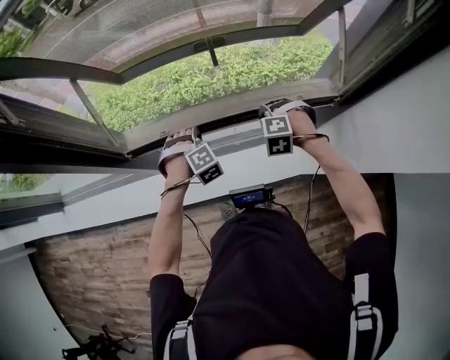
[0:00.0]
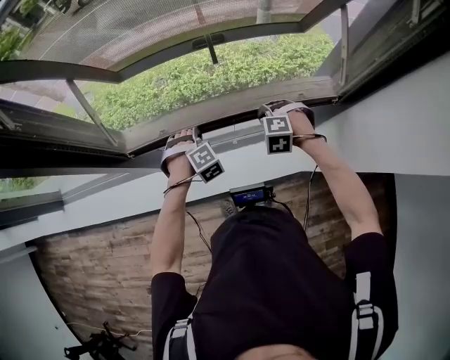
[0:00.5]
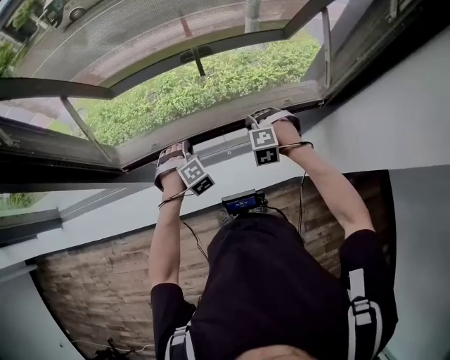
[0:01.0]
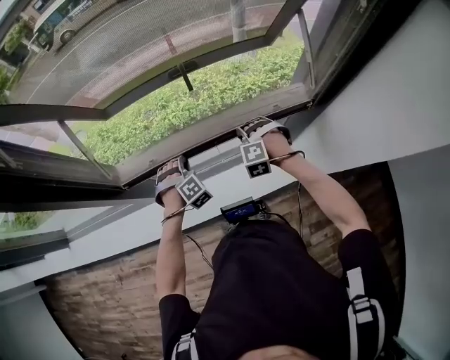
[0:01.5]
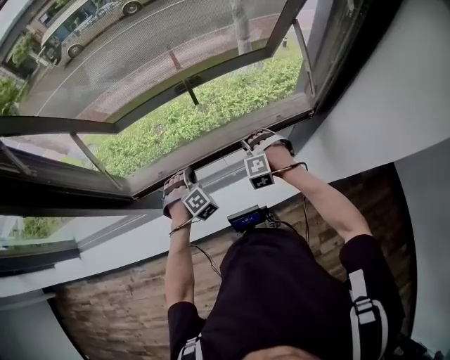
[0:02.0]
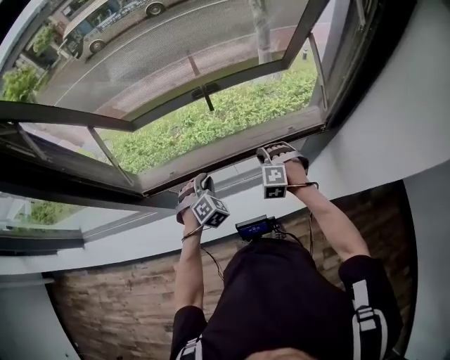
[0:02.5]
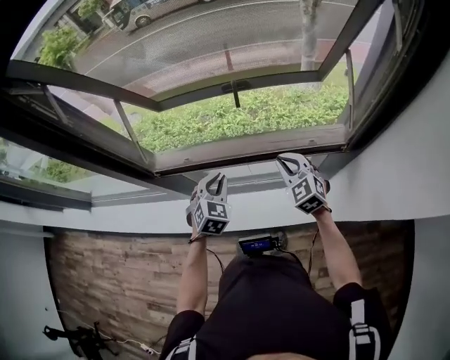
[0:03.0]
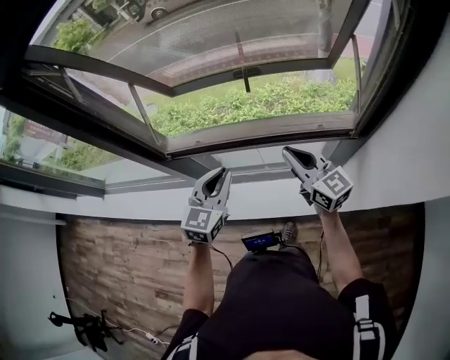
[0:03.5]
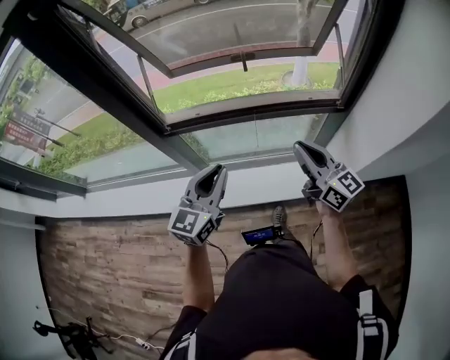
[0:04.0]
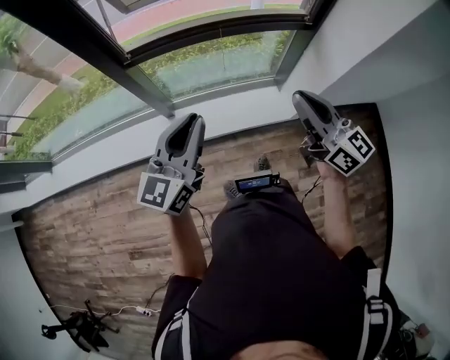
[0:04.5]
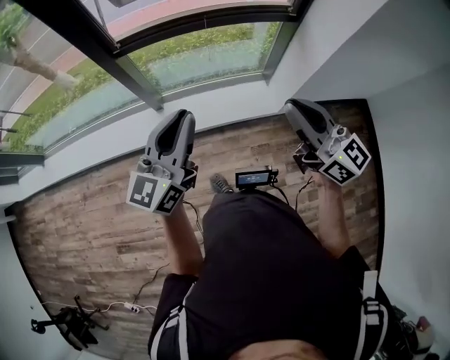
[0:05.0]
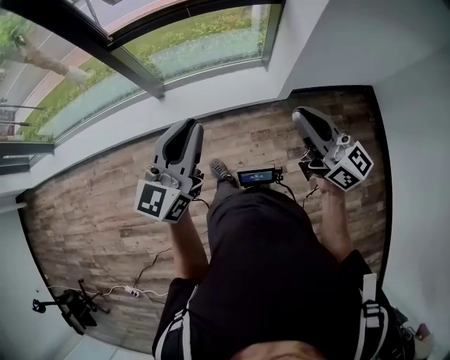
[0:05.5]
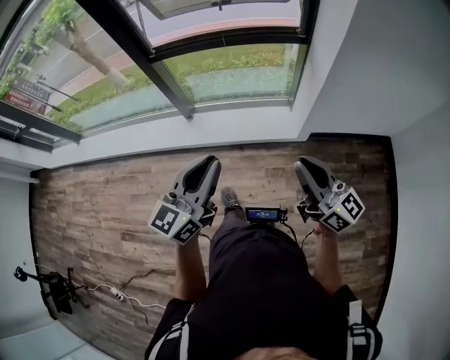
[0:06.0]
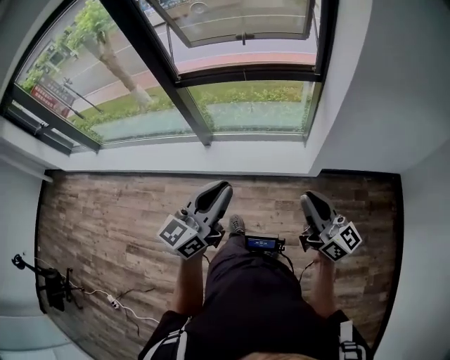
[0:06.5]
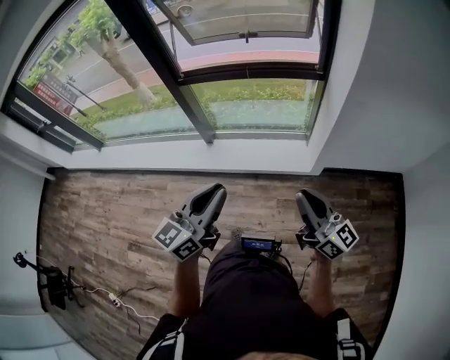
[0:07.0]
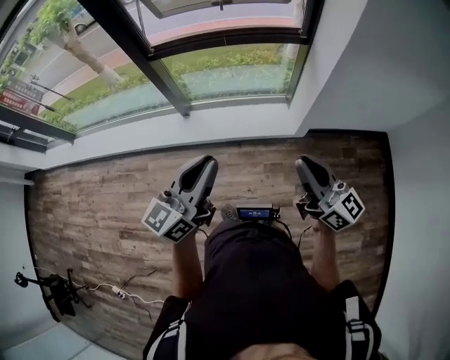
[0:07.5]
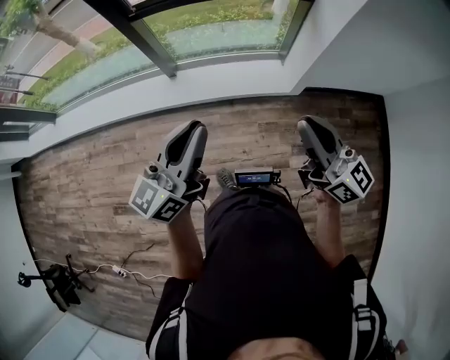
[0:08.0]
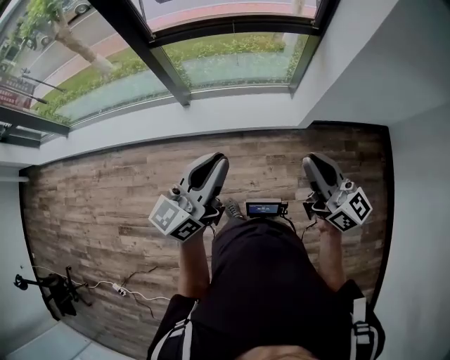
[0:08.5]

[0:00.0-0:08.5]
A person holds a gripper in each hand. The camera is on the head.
0:00.0 to 0:02.0: The grippers stay close to where they were, moving slightly.
0:02.0 to 0:04.0: The left gripper is displaced backward and upward by some 35 cm, and points its fingers roughly 40 degrees further upward; the right gripper shifts about 35 cm upward and backward, and angles its fingers upward, by approximately 60 degrees.
0:04.0 to 0:06.5: Both grippers move backward, roughly 40 cm.
0:06.5 to 0:08.5: The two grippers go about 10 cm to the left.

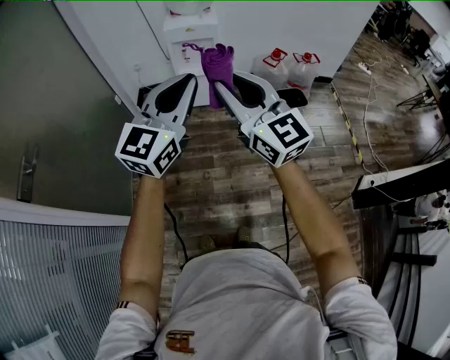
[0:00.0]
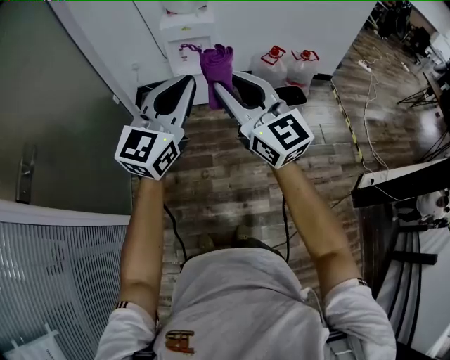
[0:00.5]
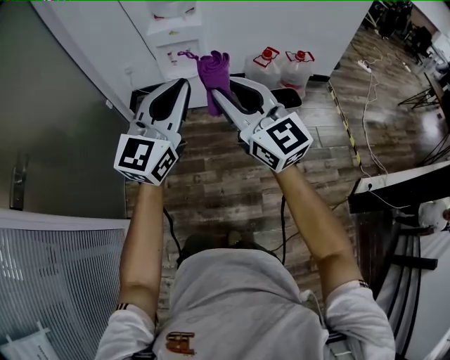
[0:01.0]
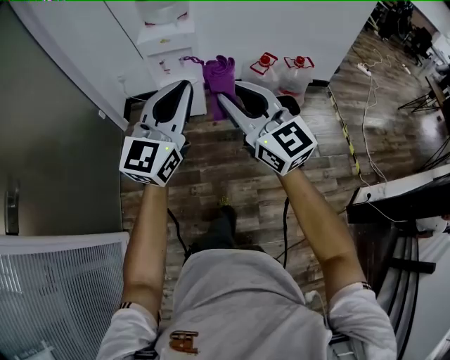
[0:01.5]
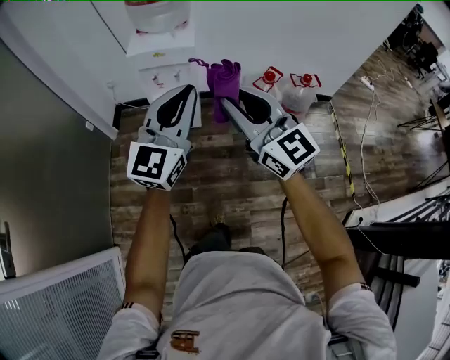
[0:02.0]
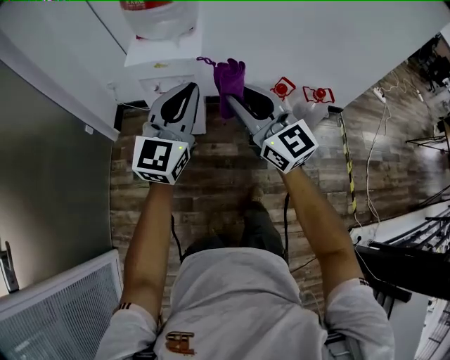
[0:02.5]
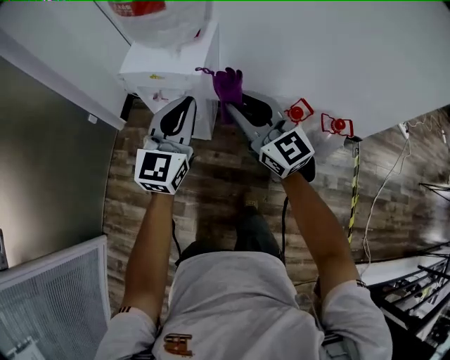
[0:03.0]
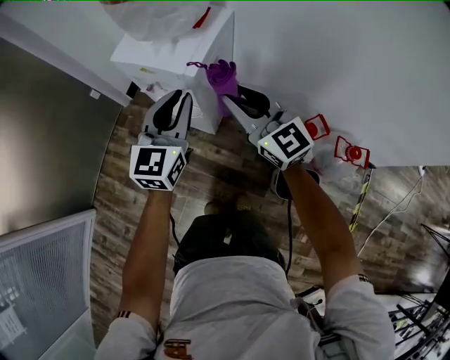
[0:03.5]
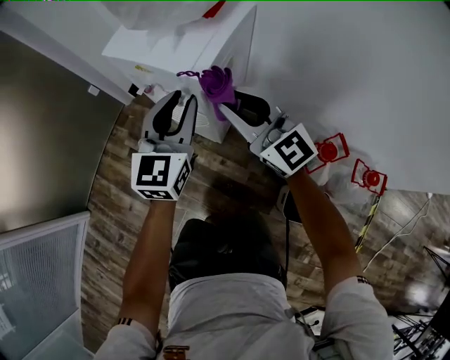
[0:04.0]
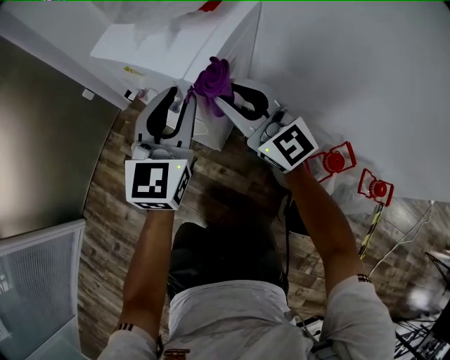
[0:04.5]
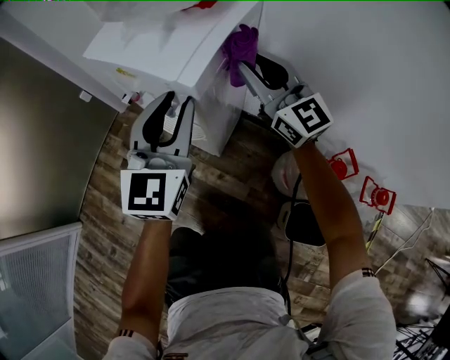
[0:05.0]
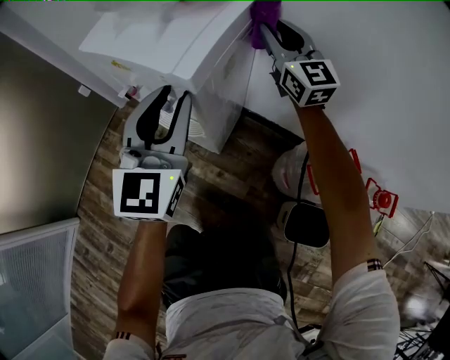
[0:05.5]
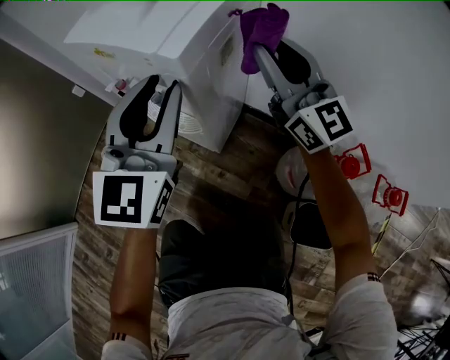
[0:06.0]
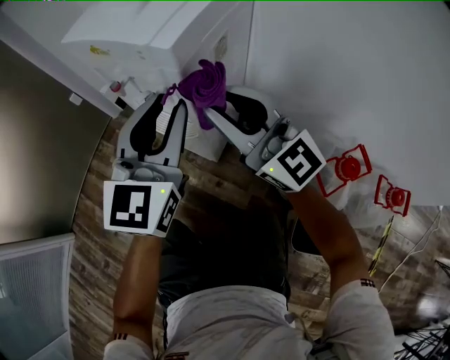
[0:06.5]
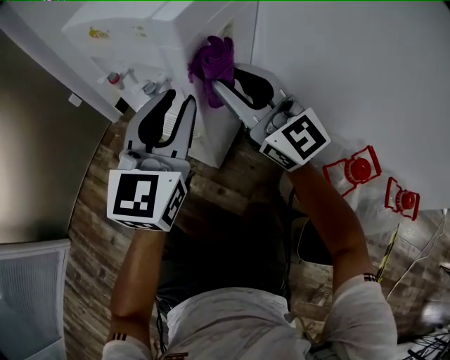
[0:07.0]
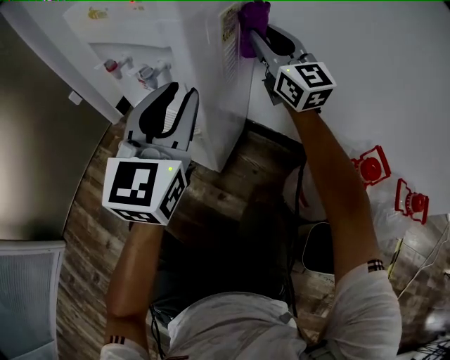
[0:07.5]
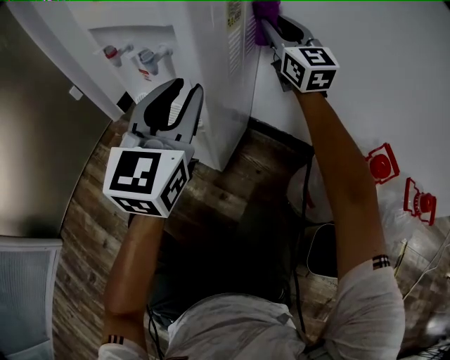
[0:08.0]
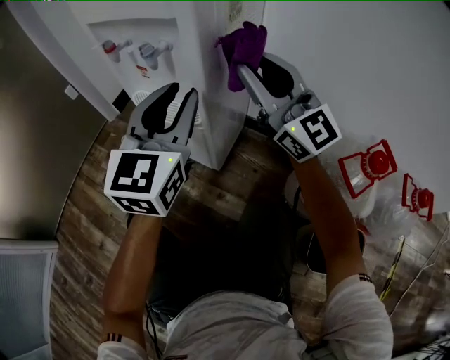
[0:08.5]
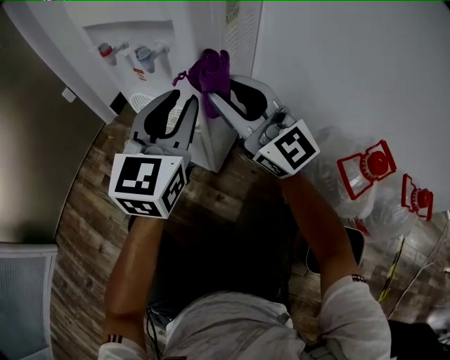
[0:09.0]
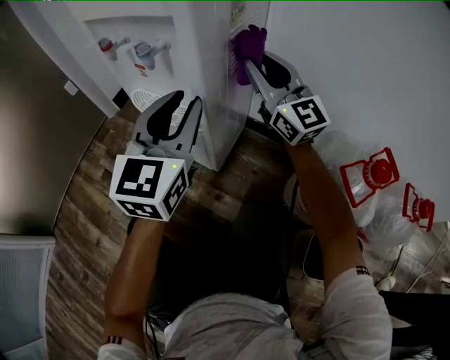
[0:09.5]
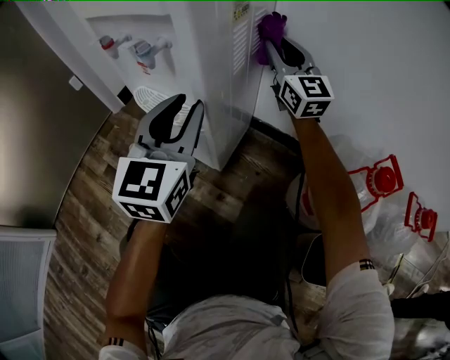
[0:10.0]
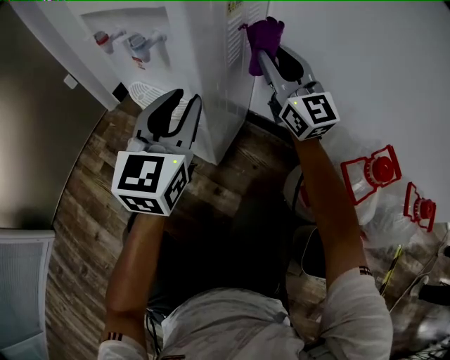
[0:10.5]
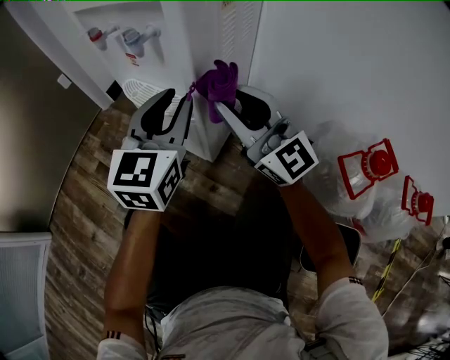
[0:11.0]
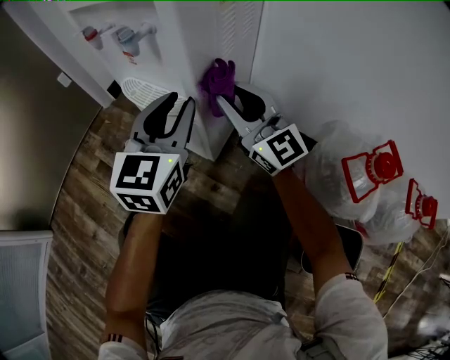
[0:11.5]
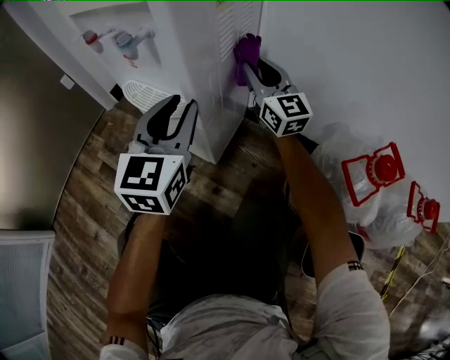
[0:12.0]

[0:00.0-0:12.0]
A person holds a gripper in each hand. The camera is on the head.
0:00.0 to 0:02.0: Both grippers move forward and to the right, about 30 cm.
0:02.0 to 0:04.0: The left gripper shifts by roughly 50 cm, changes its angle by some 40 degrees, and opens its fingers; the right gripper shifts by approximately 50 cm, and rotates some 30 degrees.
0:04.0 to 0:06.0: The right gripper is displaced to the right, forward and downward by about 15 cm.
0:06.0 to 0:08.0: The left gripper shifts approximately 15 cm downward, while the right gripper is displaced downward and forward by about 15 cm.
0:08.0 to 0:10.0: The two grippers go about 5 cm downward. The right gripper goes backward and returns, some 20 cm each way.
0:10.0 to 0:12.0: The right gripper shifts roughly 10 cm downward, and moves approximately 20 cm backward and comes back.

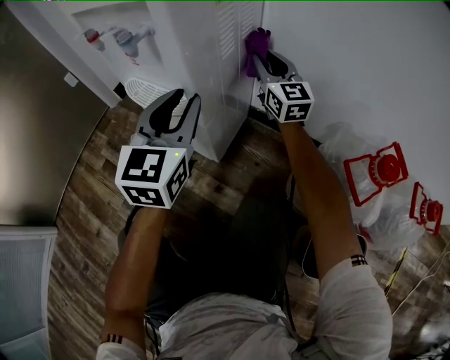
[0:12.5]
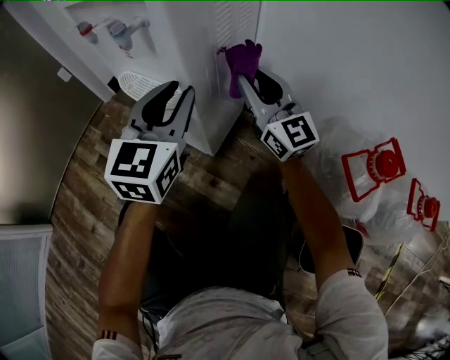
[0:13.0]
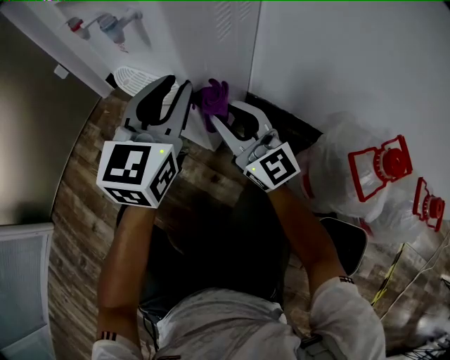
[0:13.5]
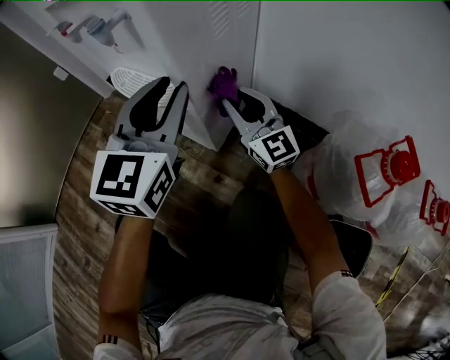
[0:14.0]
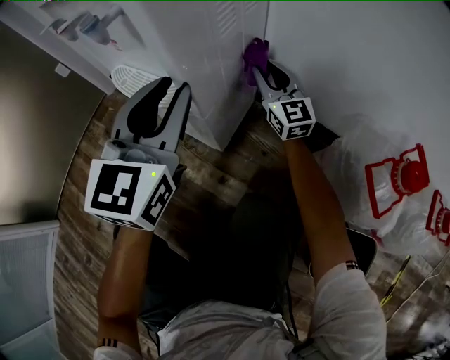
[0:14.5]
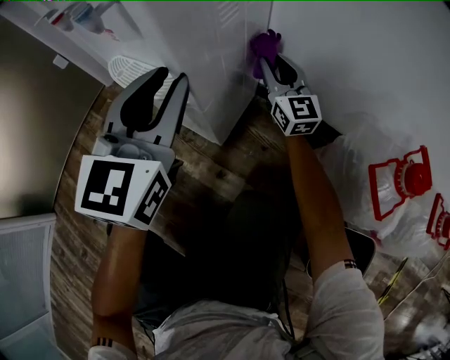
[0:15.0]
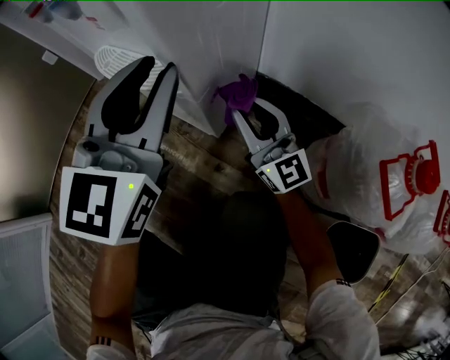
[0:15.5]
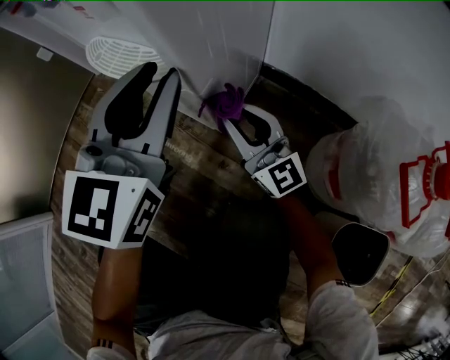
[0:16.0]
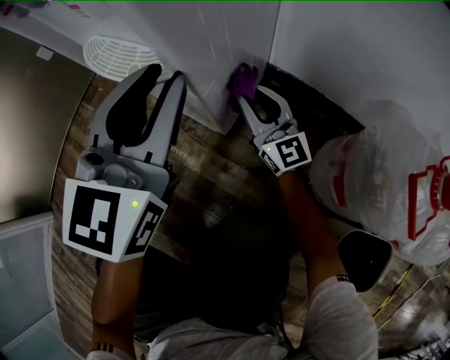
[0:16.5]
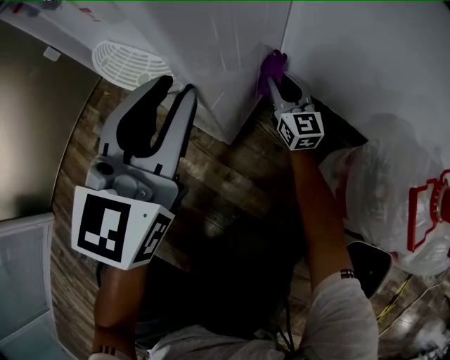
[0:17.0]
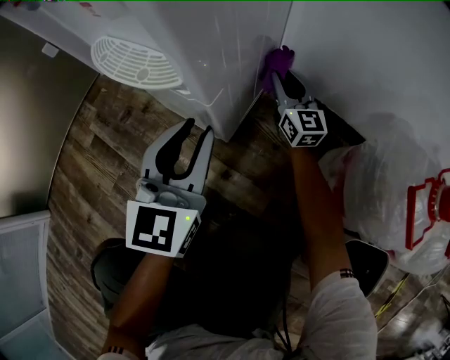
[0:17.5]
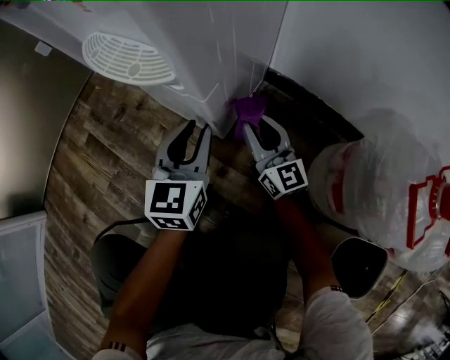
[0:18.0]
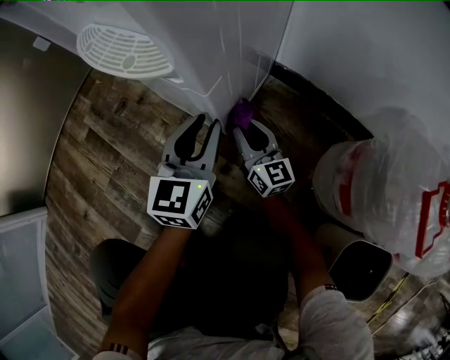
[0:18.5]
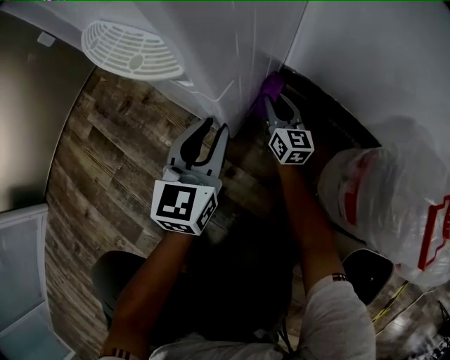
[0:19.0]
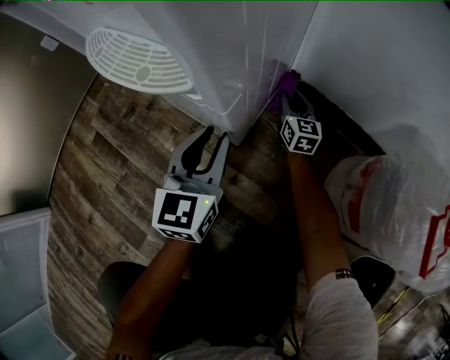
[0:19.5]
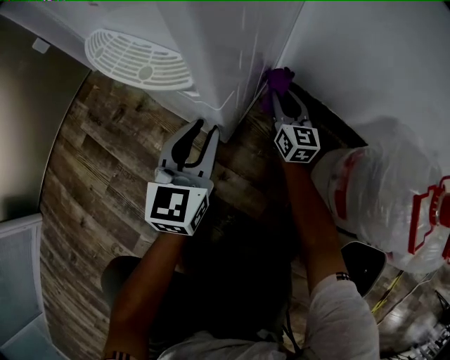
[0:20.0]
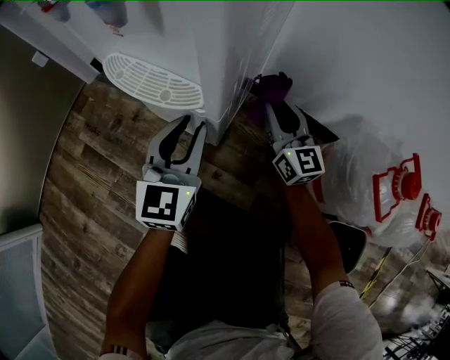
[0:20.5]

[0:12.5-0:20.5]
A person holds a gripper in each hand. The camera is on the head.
0:12.5 to 0:14.5: The right gripper heads downward, covering roughly 10 cm, and moves some 20 cm backward and comes back.
0:14.5 to 0:16.5: The right gripper goes approximately 15 cm downward, backward and to the left. The left gripper goes some 5 cm downward.
0:16.5 to 0:18.5: The right gripper travels downward by roughly 15 cm, and rotates approximately 20 degrees. Meanwhile the left gripper moves downward, some 20 cm.
0:18.5 to 0:20.5: The left gripper shifts approximately 10 cm upward; the right gripper travels upward by about 20 cm.
